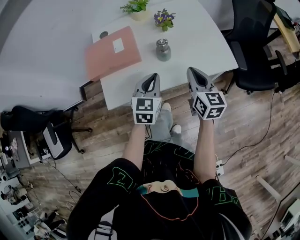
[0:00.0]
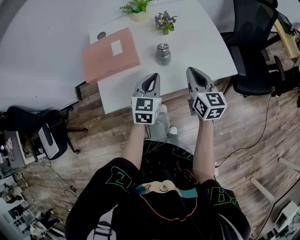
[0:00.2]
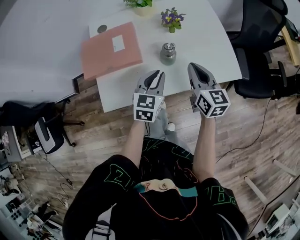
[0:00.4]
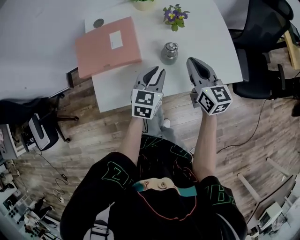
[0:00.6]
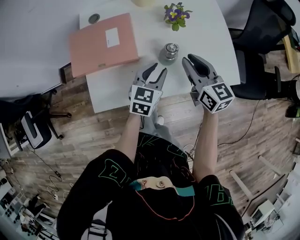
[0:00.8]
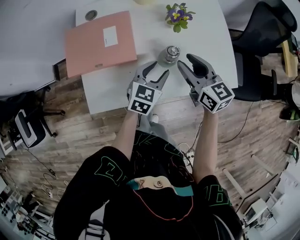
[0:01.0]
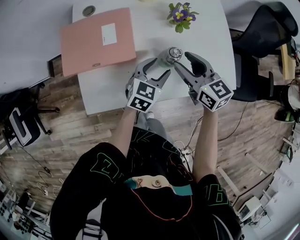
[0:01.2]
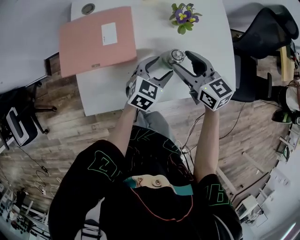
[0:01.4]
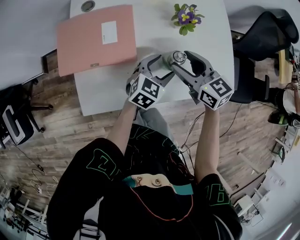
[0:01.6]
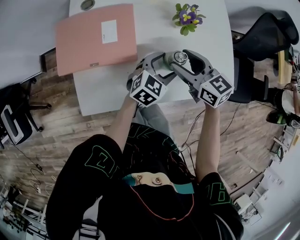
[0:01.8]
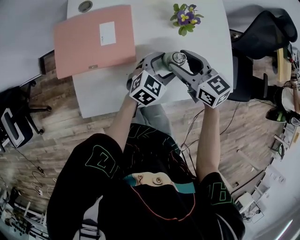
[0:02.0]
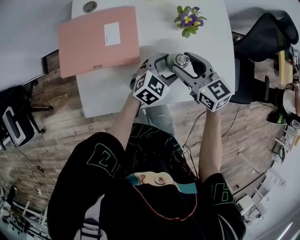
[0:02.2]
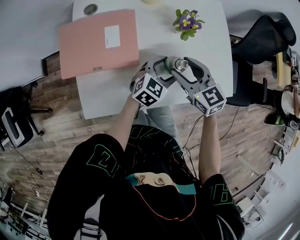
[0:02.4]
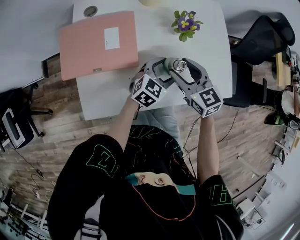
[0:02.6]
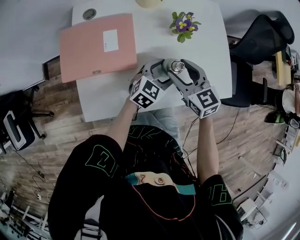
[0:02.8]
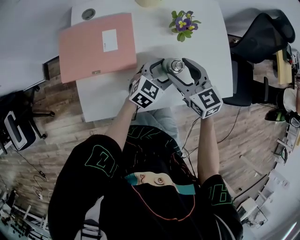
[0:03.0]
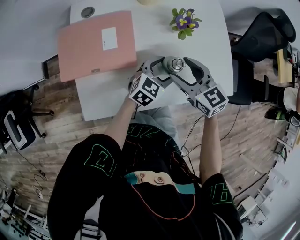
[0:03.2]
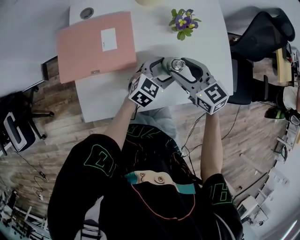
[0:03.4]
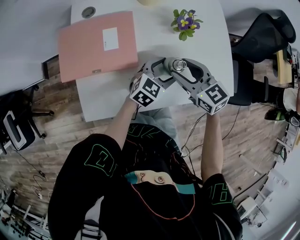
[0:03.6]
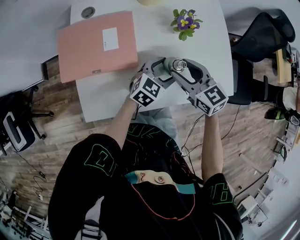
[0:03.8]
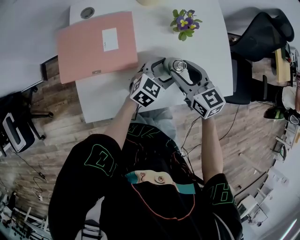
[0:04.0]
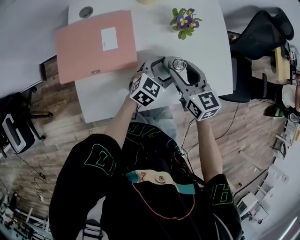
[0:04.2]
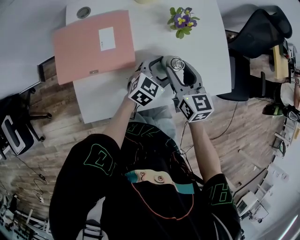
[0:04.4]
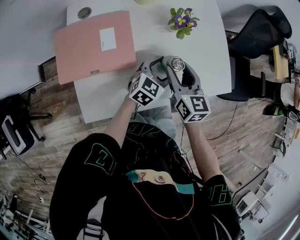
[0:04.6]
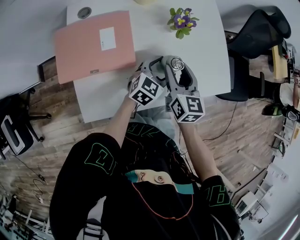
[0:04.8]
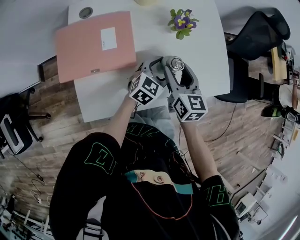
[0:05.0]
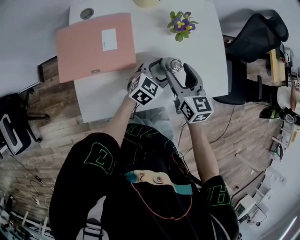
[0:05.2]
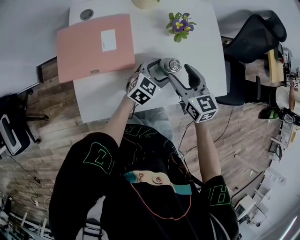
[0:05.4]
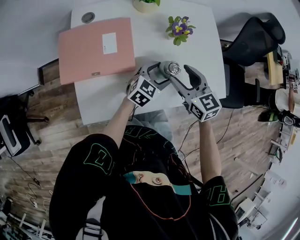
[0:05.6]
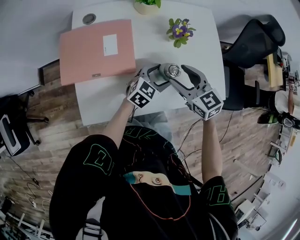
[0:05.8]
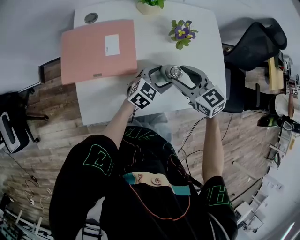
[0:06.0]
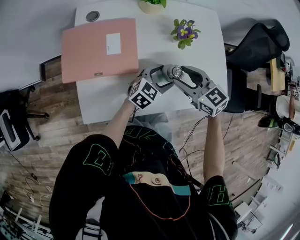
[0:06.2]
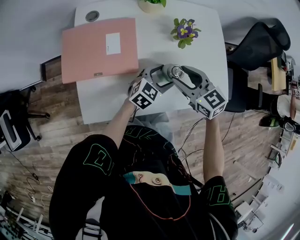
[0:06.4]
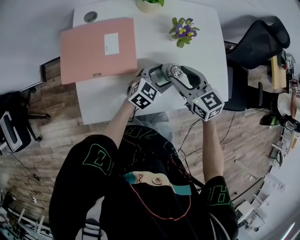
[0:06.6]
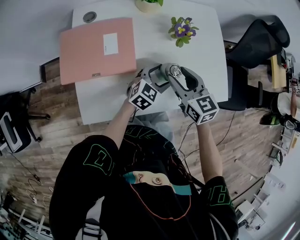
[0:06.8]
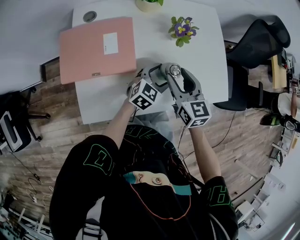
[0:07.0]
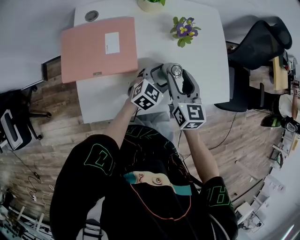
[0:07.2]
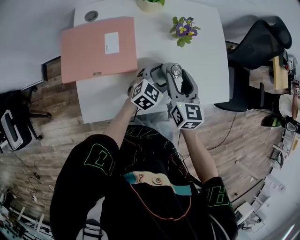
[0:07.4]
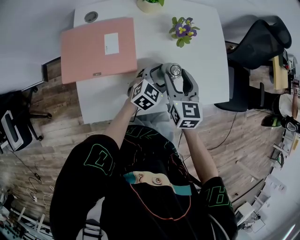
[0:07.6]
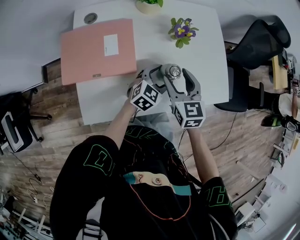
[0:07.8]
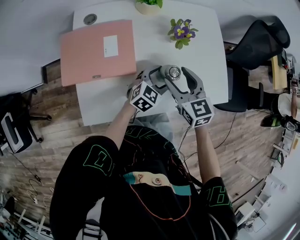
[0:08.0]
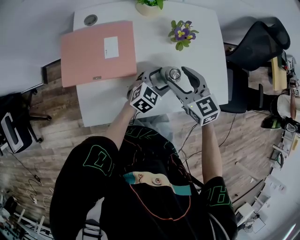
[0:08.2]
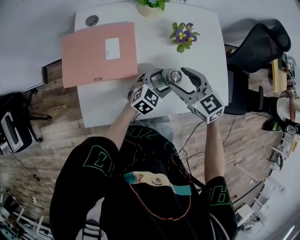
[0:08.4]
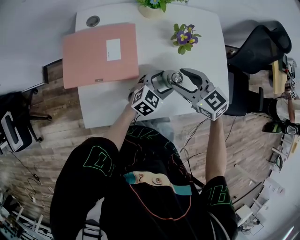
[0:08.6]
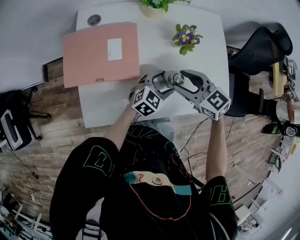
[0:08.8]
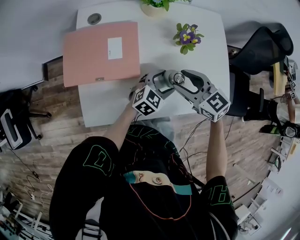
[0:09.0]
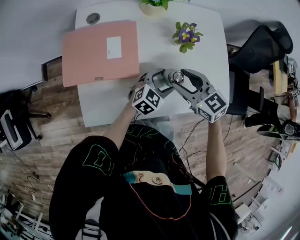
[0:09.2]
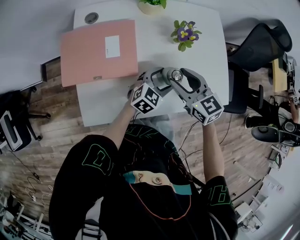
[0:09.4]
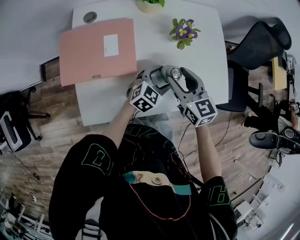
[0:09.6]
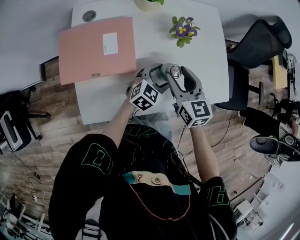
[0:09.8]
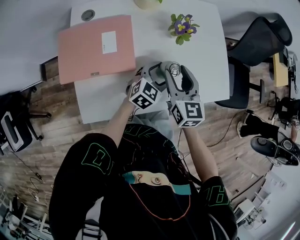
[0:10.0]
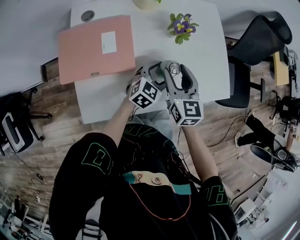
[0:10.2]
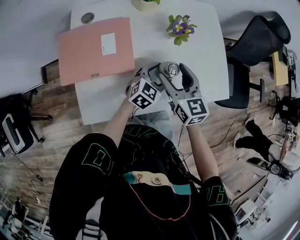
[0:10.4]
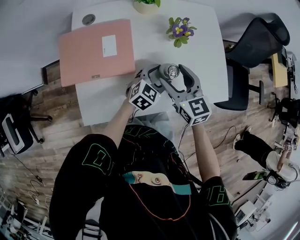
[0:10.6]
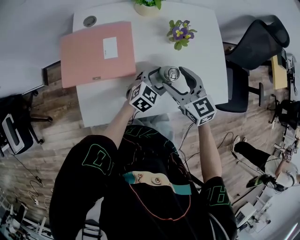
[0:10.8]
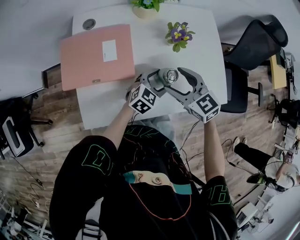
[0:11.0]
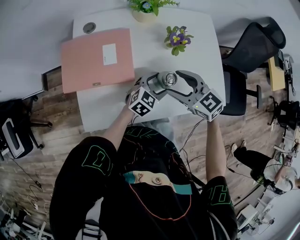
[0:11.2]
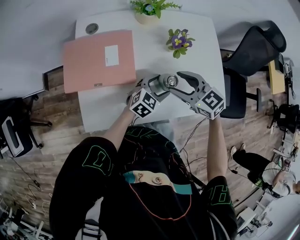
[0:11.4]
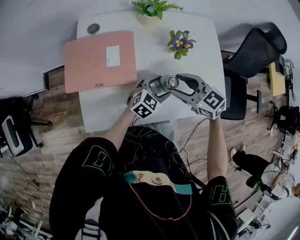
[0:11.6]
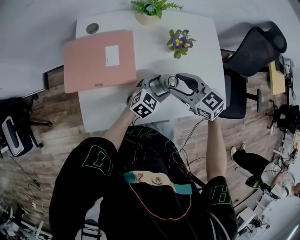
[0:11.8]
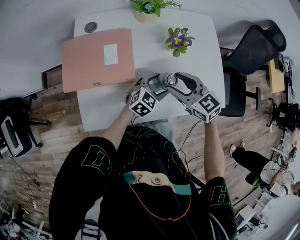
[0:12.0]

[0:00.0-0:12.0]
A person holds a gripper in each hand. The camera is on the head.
0:00.0 to 0:01.6: The right gripper heads forward and to the left, covering approximately 20 cm, turns by approximately 40 degrees, and opens. Meanwhile the left gripper shifts approximately 15 cm forward and downward, rotates about 20 degrees, and opens up.
0:01.6 to 0:03.0: The grippers make only small movements.
0:03.0 to 0:04.4: The right gripper changes its angle by some 20 degrees.
0:04.4 to 0:06.0: The right gripper turns by about 30 degrees.
0:06.0 to 0:07.6: The right gripper turns by approximately 40 degrees.
0:07.6 to 0:09.0: The right gripper changes its angle by approximately 40 degrees.
0:09.0 to 0:10.4: The right gripper changes its angle by approximately 30 degrees.
0:10.4 to 0:12.0: The right gripper rotates roughly 30 degrees.

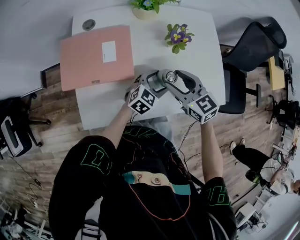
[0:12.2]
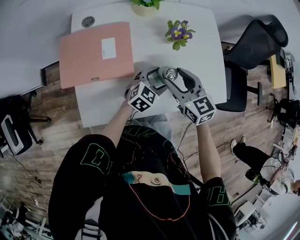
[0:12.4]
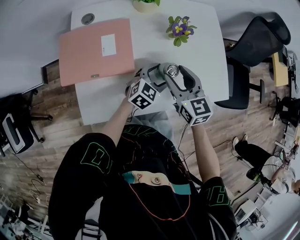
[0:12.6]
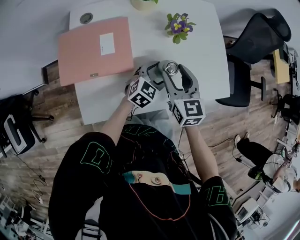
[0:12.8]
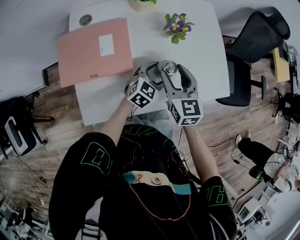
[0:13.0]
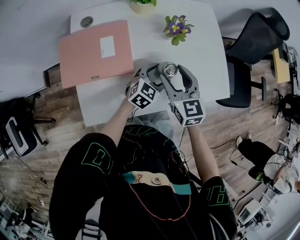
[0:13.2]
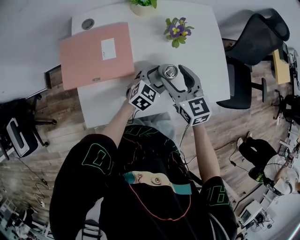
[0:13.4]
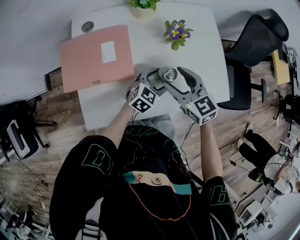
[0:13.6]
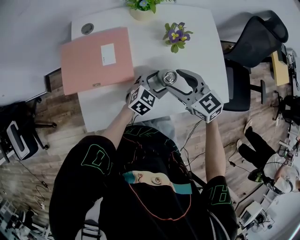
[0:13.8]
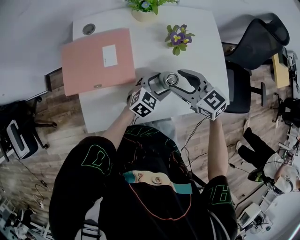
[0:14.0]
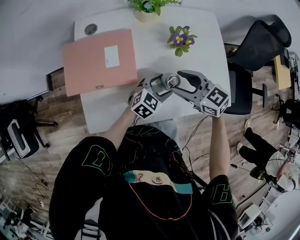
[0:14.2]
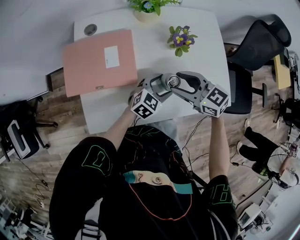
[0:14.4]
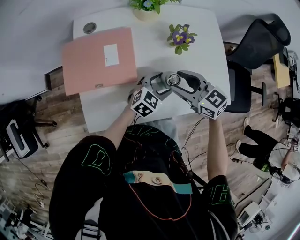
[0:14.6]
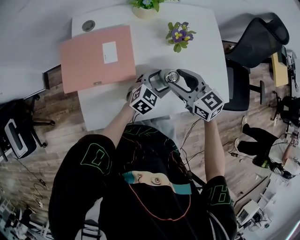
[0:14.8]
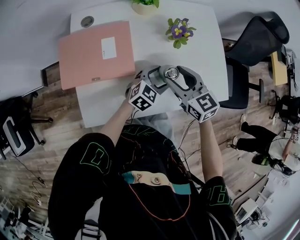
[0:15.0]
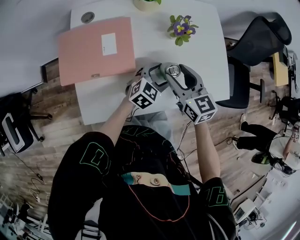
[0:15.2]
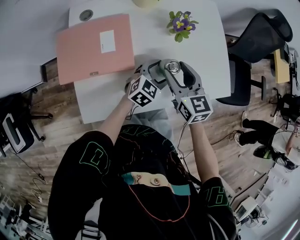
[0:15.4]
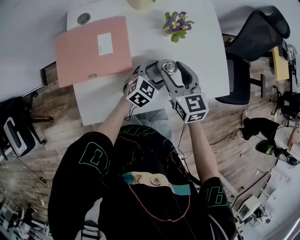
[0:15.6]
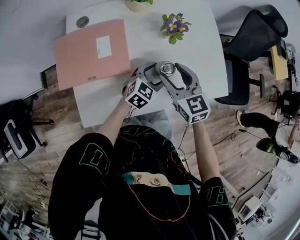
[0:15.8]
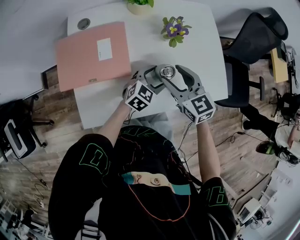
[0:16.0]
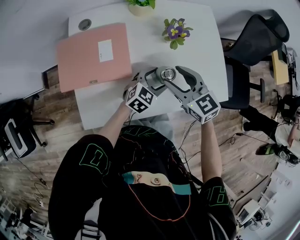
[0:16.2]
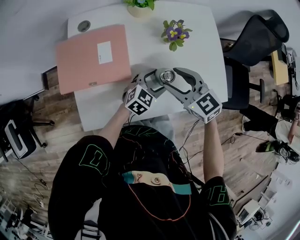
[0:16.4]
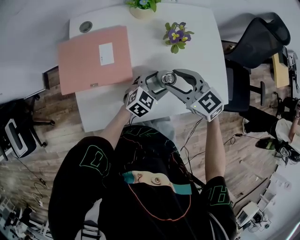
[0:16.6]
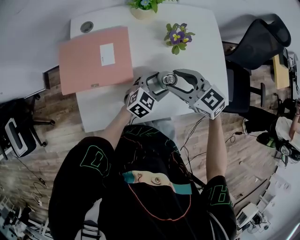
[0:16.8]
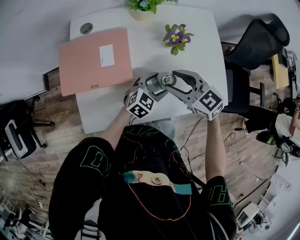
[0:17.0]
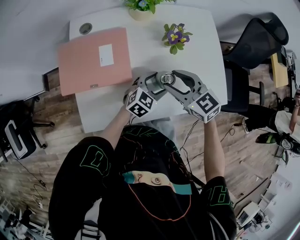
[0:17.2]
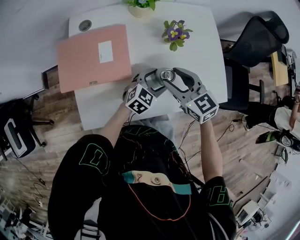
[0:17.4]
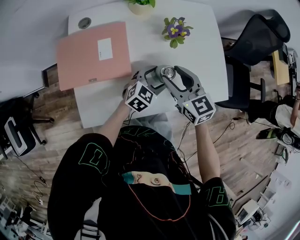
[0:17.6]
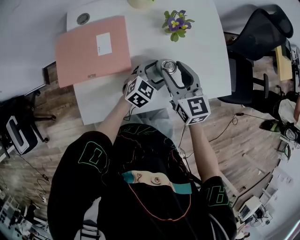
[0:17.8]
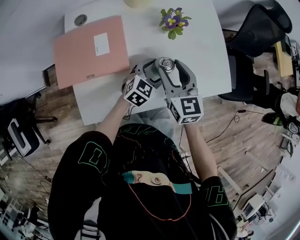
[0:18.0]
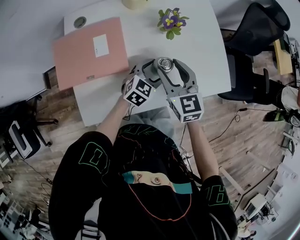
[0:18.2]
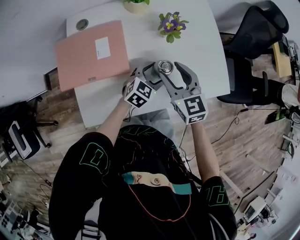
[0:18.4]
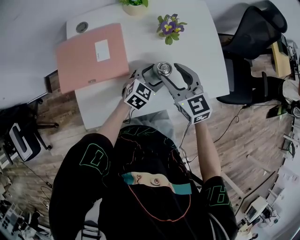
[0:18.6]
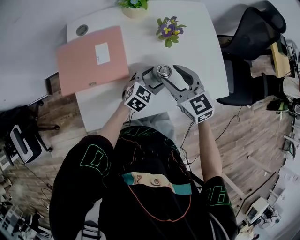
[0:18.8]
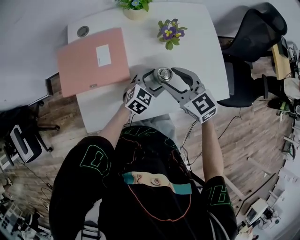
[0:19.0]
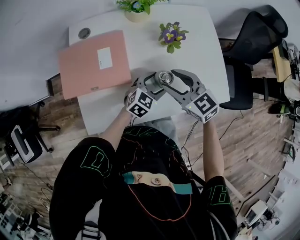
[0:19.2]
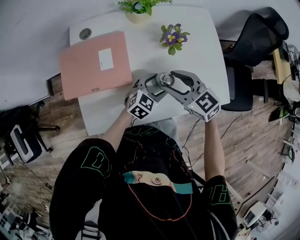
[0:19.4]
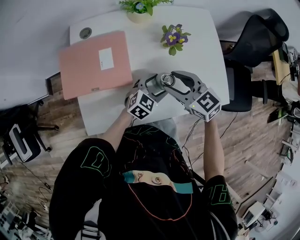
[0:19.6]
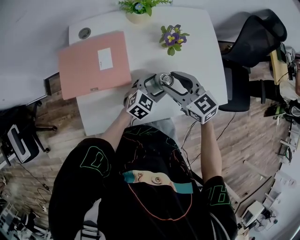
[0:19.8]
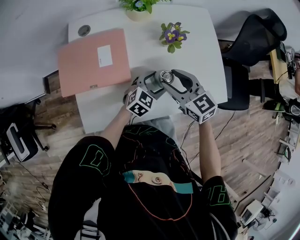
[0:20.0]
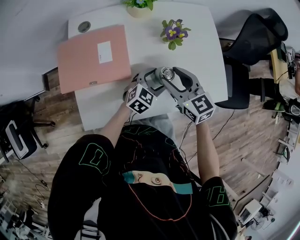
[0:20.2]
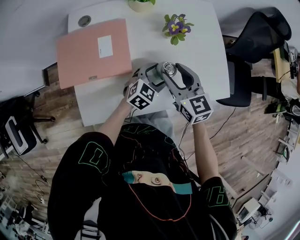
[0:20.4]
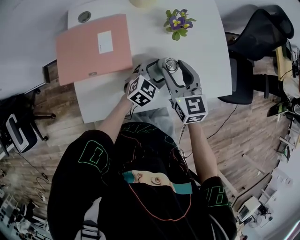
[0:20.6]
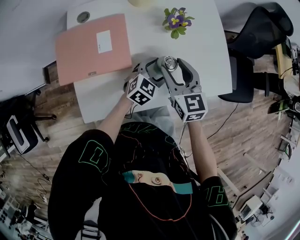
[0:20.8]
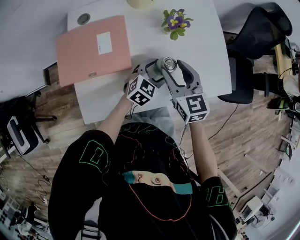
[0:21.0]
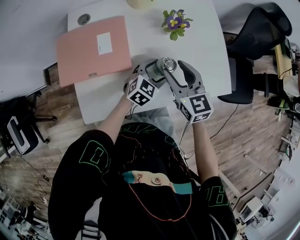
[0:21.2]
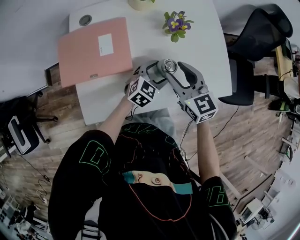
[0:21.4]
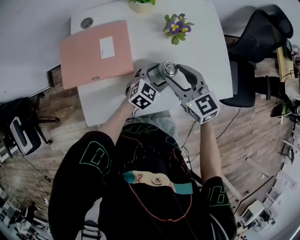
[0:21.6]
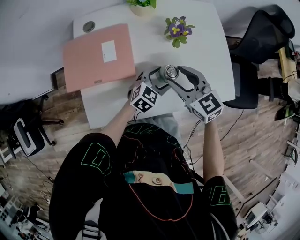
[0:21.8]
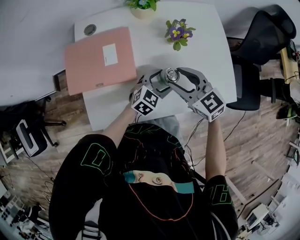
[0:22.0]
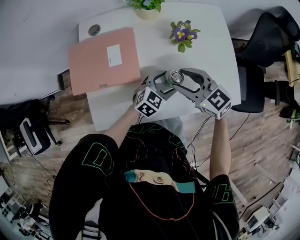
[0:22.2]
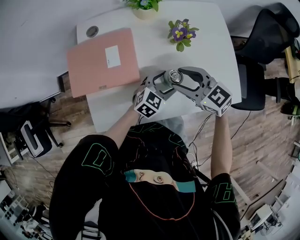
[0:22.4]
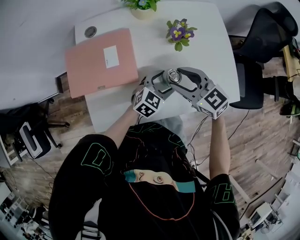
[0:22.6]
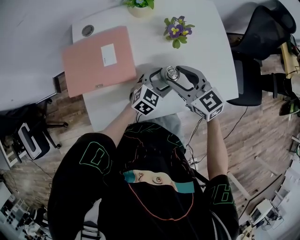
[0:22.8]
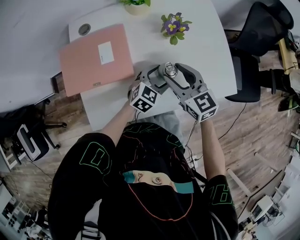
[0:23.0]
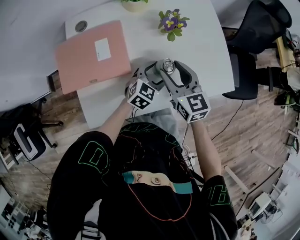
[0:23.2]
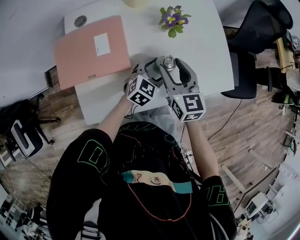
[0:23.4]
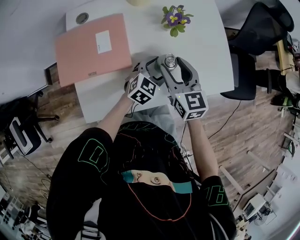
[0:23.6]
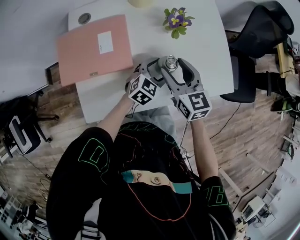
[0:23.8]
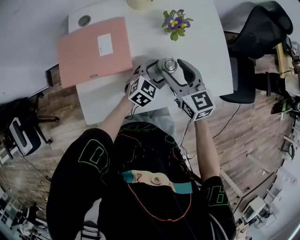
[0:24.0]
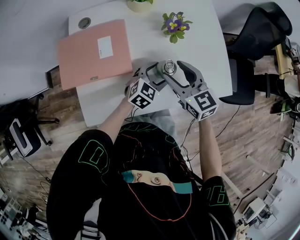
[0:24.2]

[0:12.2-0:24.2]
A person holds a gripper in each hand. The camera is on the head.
0:13.8 to 0:15.2: The grippers make only small movements.
0:15.2 to 0:16.6: The right gripper changes its angle by about 30 degrees.
0:16.6 to 0:18.2: The right gripper turns by approximately 30 degrees.
0:18.2 to 0:19.8: The right gripper rotates some 20 degrees.
0:19.8 to 0:21.2: The right gripper swivels about 20 degrees.
0:21.2 to 0:22.6: The right gripper turns by about 30 degrees.
